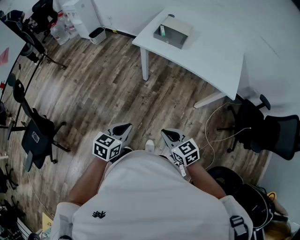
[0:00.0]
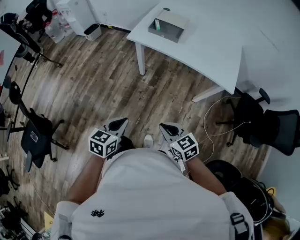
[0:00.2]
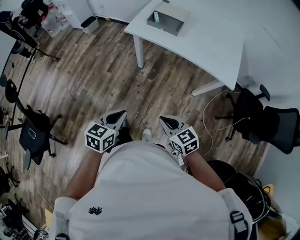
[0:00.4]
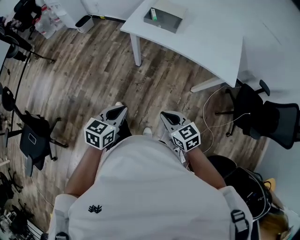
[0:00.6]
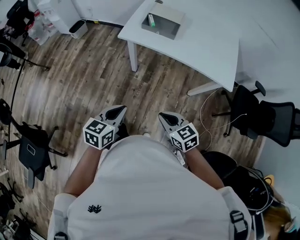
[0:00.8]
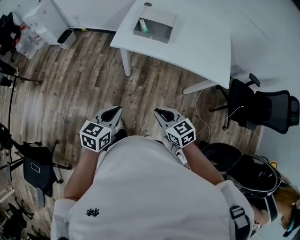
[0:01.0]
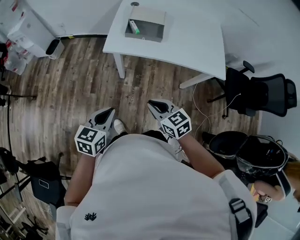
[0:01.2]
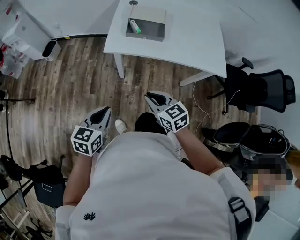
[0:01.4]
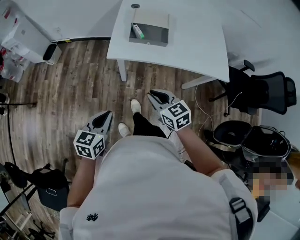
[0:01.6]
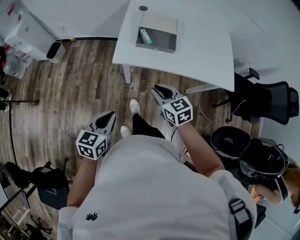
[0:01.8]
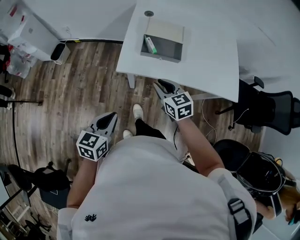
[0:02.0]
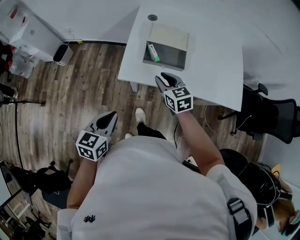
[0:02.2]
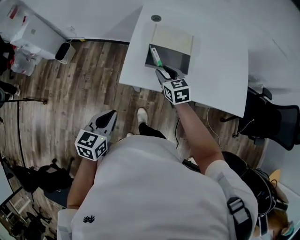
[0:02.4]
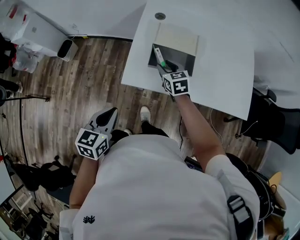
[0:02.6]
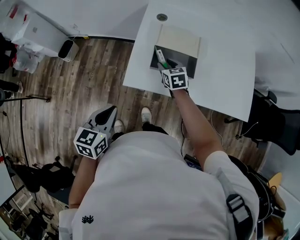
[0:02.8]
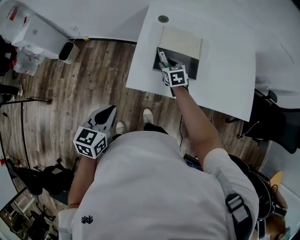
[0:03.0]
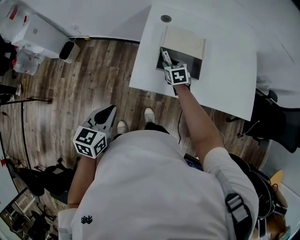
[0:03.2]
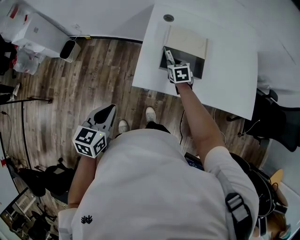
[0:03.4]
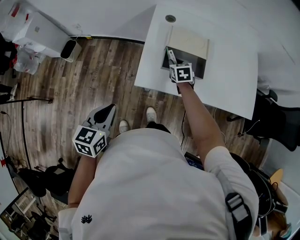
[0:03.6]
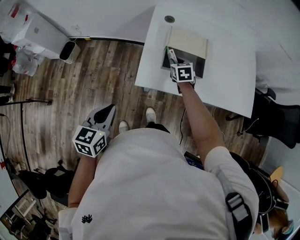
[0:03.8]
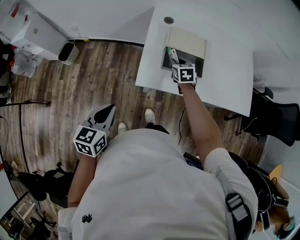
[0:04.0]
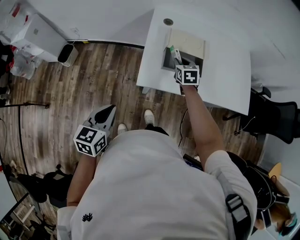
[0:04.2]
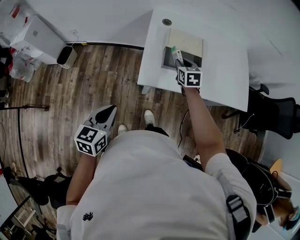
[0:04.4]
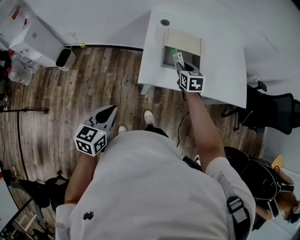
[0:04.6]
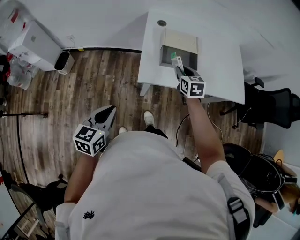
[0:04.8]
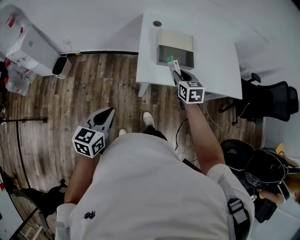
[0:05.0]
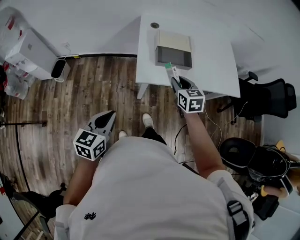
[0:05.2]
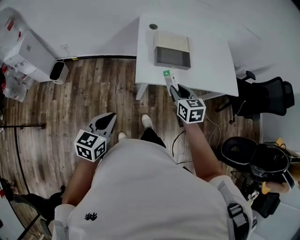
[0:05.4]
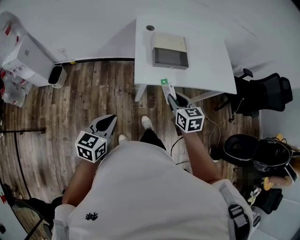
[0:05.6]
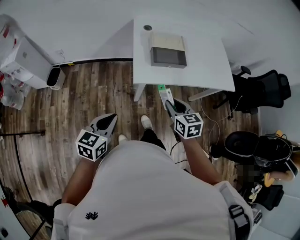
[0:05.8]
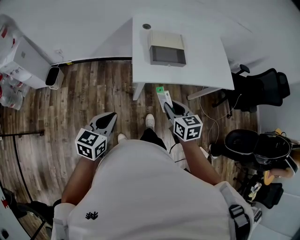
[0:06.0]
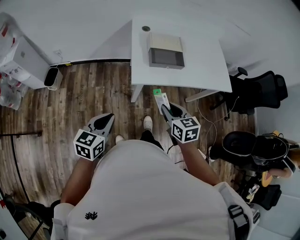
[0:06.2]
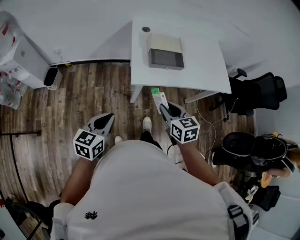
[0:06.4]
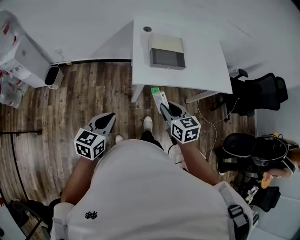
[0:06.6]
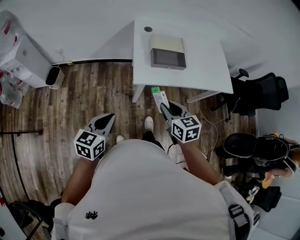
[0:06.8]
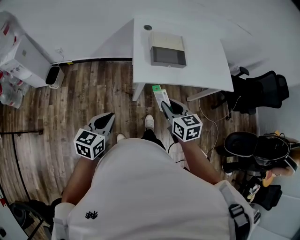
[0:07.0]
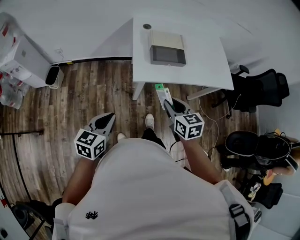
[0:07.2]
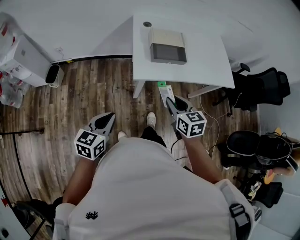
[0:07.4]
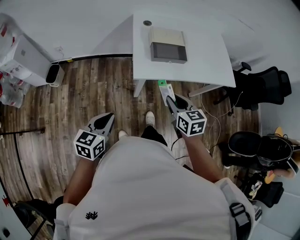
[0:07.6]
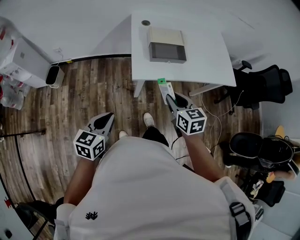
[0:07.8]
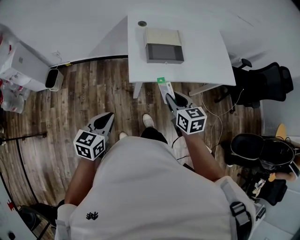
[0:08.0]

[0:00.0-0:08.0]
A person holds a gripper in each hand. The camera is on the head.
0:00.0 to 0:01.6: The left gripper goes roughly 30 cm forward and to the left. The right gripper shifts about 30 cm forward, and rotates about 20 degrees.
0:01.6 to 0:03.2: The left gripper heads forward, covering roughly 20 cm. Meanwhile the right gripper goes some 40 cm forward, swivels some 20 degrees, and opens.
0:03.2 to 0:04.8: The right gripper heads upward and backward, covering approximately 15 cm. Meanwhile the left gripper moves backward and to the left, about 10 cm.
0:04.8 to 0:06.4: The right gripper goes some 25 cm backward; the left gripper moves backward, some 5 cm.
0:06.4 to 0:08.0: The grippers make only small movements.

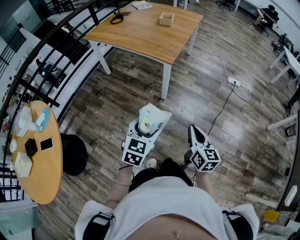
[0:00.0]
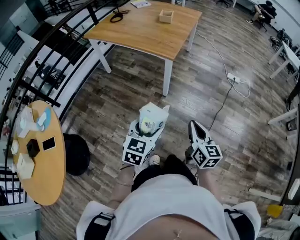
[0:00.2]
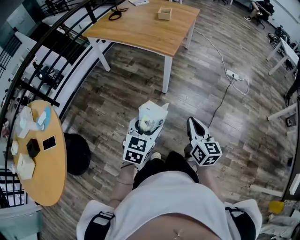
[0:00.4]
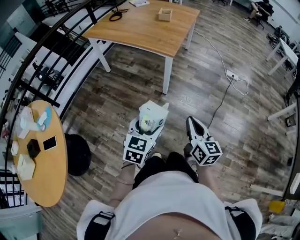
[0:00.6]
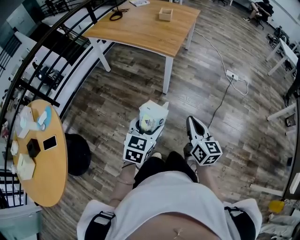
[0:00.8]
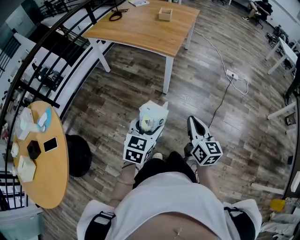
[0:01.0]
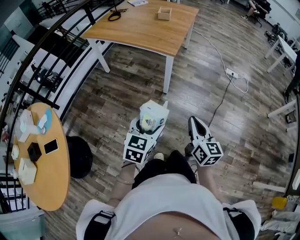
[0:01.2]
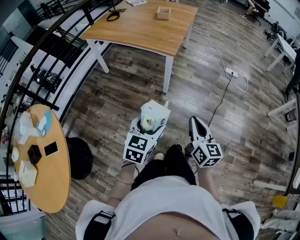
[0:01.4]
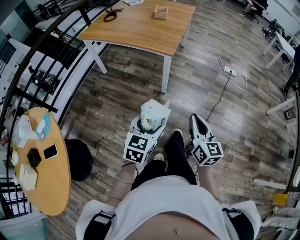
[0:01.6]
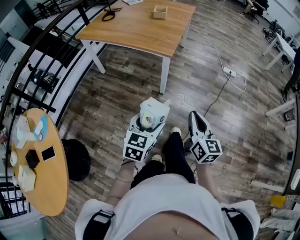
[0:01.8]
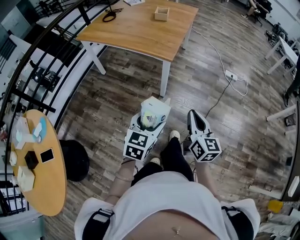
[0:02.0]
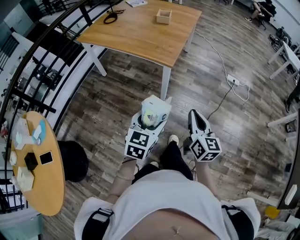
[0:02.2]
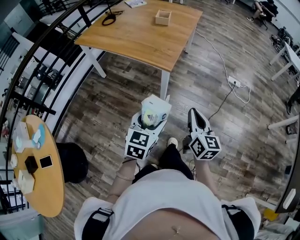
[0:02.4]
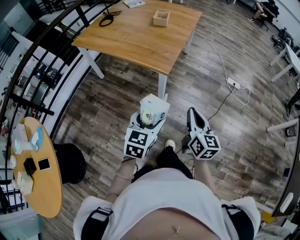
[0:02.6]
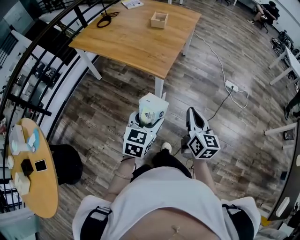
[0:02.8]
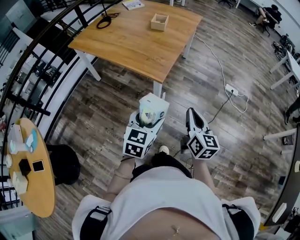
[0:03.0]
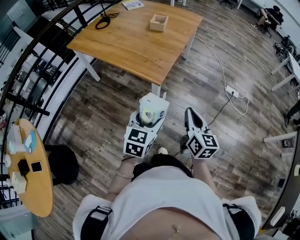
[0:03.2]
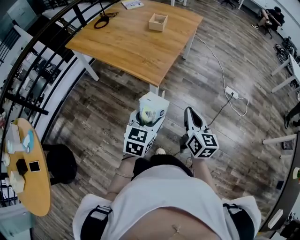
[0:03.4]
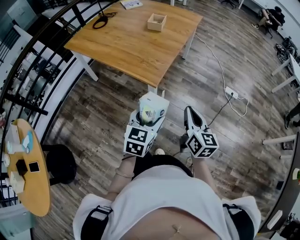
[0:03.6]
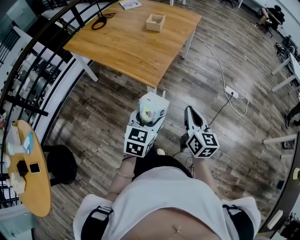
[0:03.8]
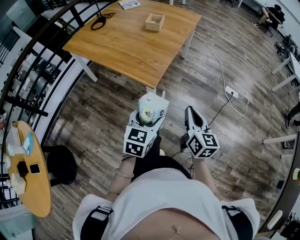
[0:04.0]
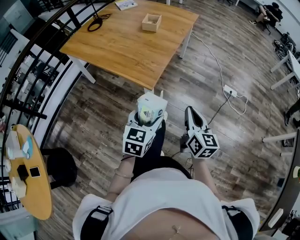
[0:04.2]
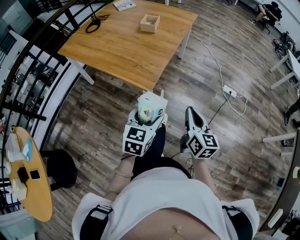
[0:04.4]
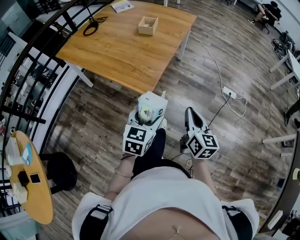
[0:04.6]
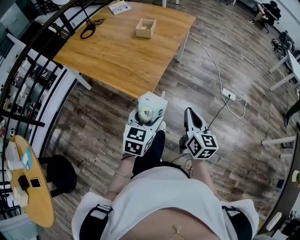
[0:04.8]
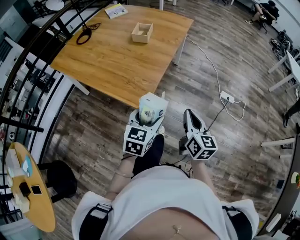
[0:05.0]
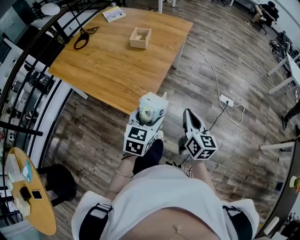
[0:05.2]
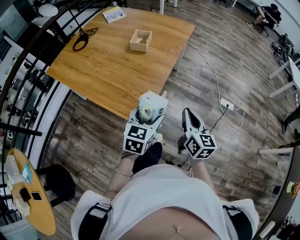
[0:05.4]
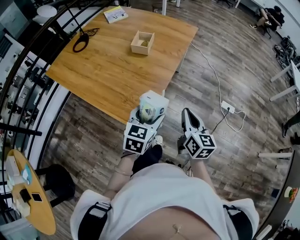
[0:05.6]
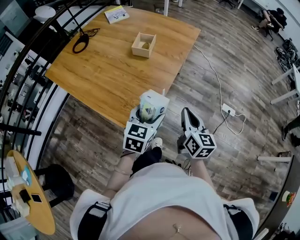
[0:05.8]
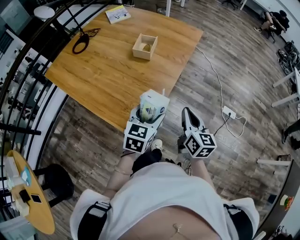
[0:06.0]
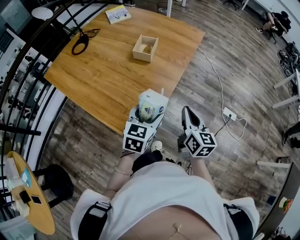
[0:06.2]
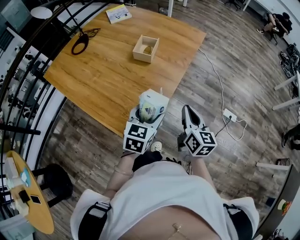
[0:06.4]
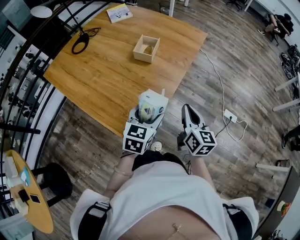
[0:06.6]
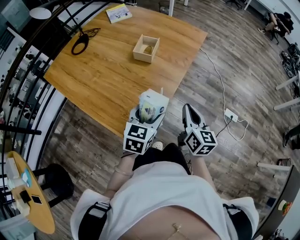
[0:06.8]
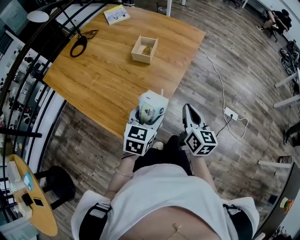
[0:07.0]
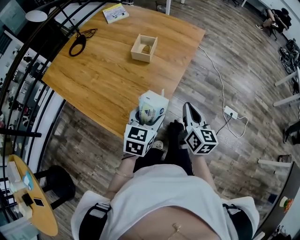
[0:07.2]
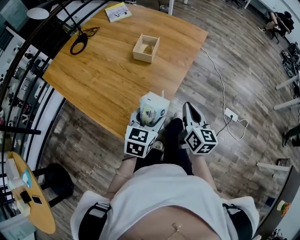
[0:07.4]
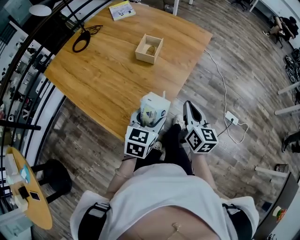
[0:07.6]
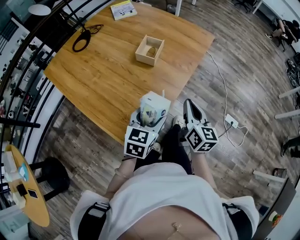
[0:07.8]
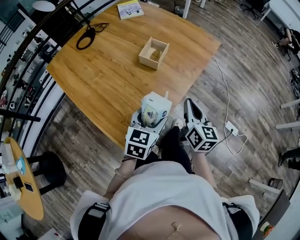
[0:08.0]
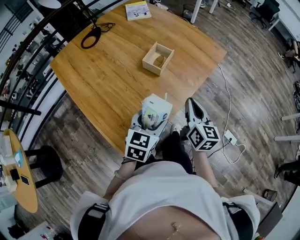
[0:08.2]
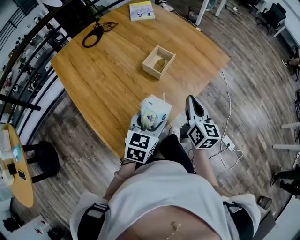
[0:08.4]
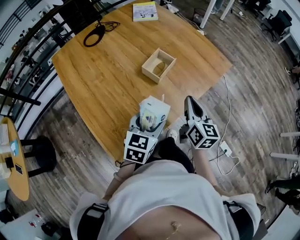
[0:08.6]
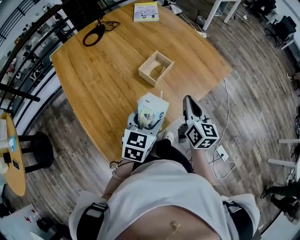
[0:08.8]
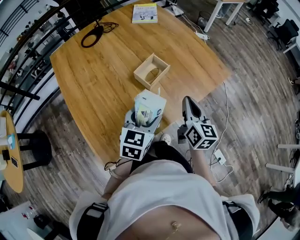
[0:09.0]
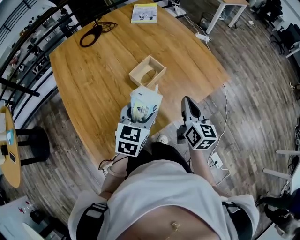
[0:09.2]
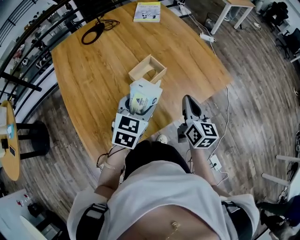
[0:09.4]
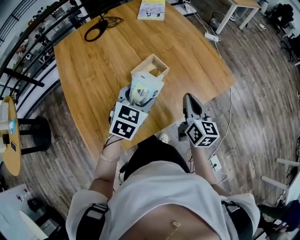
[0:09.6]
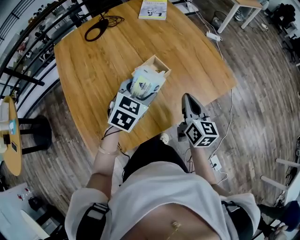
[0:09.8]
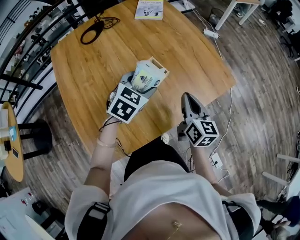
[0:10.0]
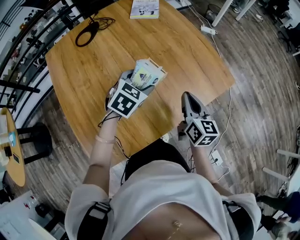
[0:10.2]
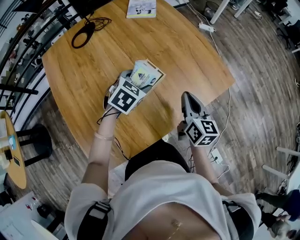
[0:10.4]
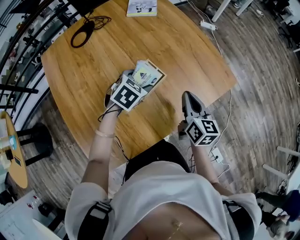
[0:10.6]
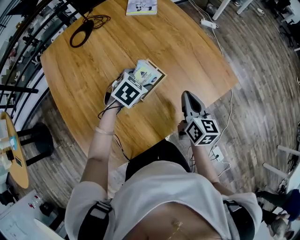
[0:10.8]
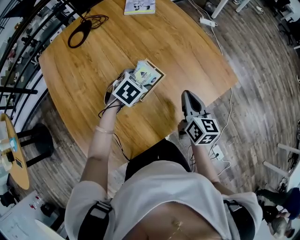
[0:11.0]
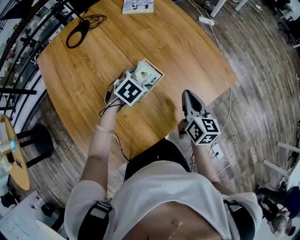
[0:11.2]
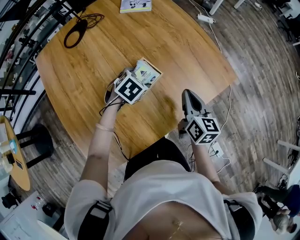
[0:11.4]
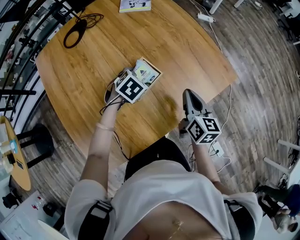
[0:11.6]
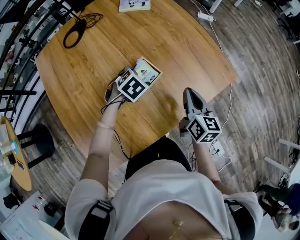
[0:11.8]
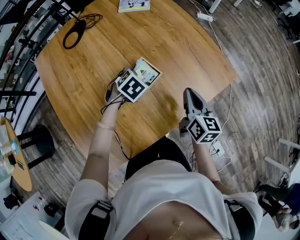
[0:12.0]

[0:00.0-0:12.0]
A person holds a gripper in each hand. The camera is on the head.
0:00.0 to 0:01.6: The right gripper moves to the left, about 5 cm.
0:01.6 to 0:03.0: Both grippers move forward, about 25 cm.
0:03.0 to 0:04.4: The two grippers go approximately 10 cm forward and to the right.
0:04.4 to 0:06.0: The grippers both shift forward by approximately 30 cm.
0:06.0 to 0:07.6: The right gripper travels forward by about 10 cm.
0:07.6 to 0:09.0: The two grippers go some 20 cm forward. The left gripper changes its angle by about 20 degrees. Meanwhile the right gripper turns by some 20 degrees.
0:09.0 to 0:10.4: The right gripper moves forward, some 10 cm, while the left gripper moves forward, about 20 cm, and rotates roughly 30 degrees.
0:10.4 to 0:12.0: The left gripper goes about 10 cm downward.

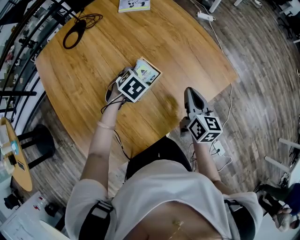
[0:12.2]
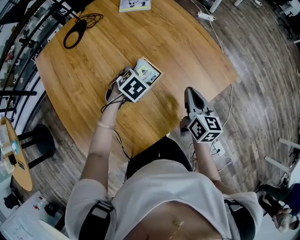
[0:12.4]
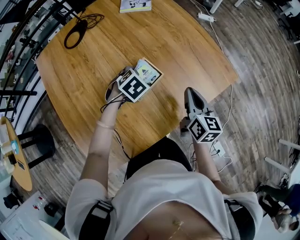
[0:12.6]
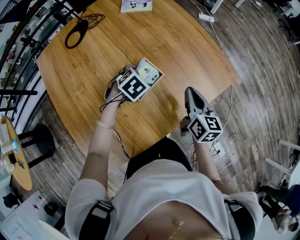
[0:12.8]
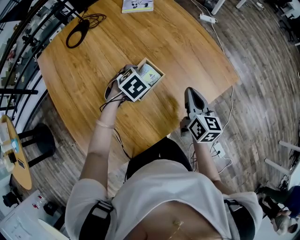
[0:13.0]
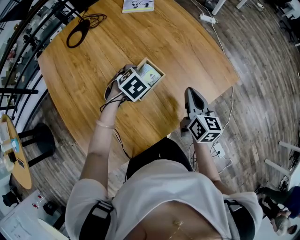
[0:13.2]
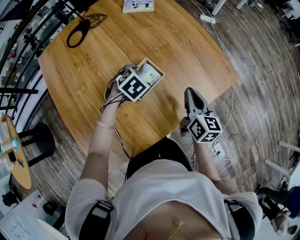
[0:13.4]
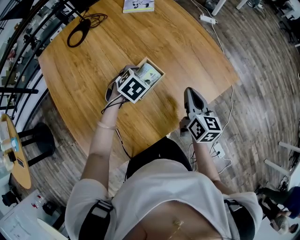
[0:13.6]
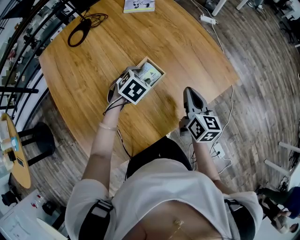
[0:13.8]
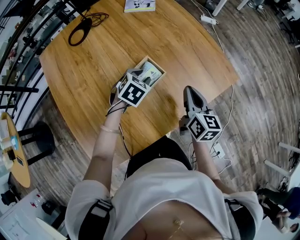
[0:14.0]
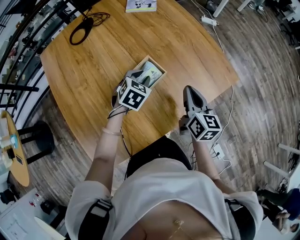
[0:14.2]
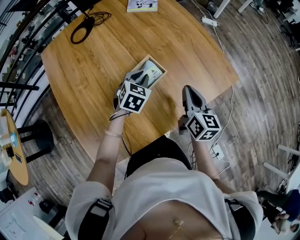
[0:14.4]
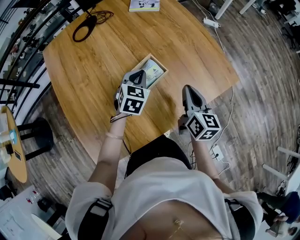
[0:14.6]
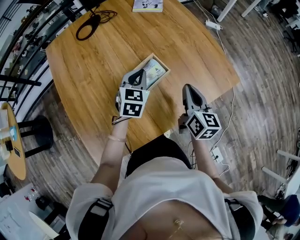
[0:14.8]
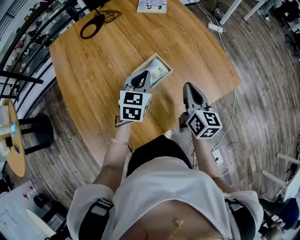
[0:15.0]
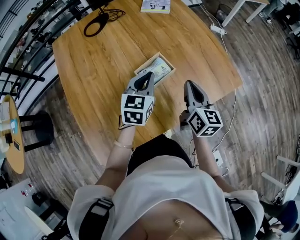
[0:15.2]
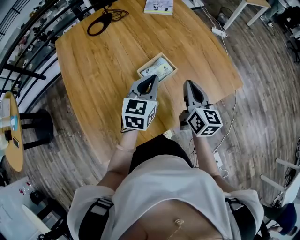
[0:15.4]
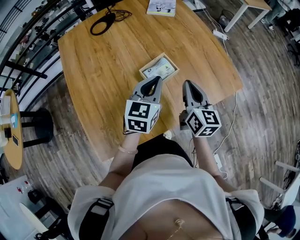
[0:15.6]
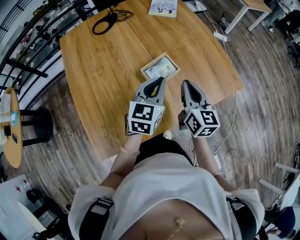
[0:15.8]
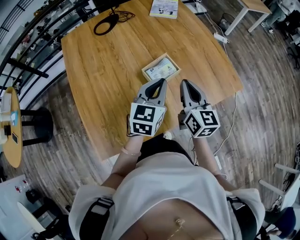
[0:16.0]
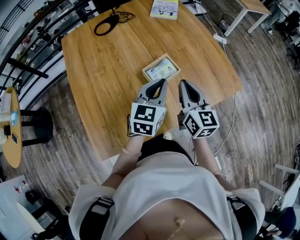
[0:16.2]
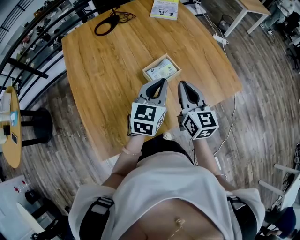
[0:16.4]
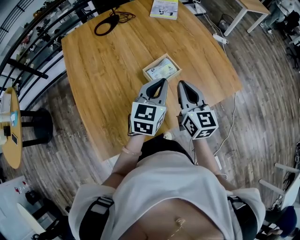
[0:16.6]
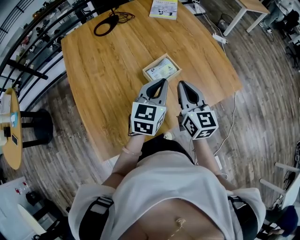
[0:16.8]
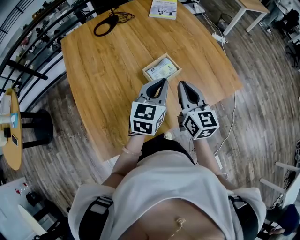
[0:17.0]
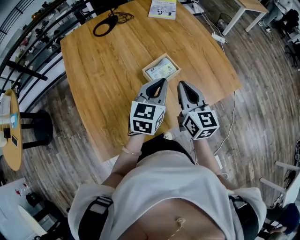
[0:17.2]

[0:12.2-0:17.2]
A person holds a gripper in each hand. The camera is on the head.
0:12.2 to 0:13.8: The grippers stay close to where they were, moving slightly.
0:13.8 to 0:15.6: The right gripper travels to the left and upward by about 10 cm, while the left gripper is displaced upward and backward by about 15 cm, angles its fingers upward, by roughly 40 degrees, and closes up.
0:15.6 to 0:17.2: The right gripper ends up roughly 5 cm from where it was.
